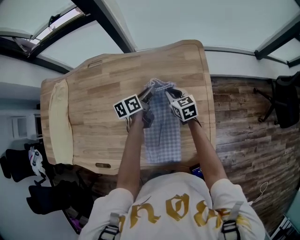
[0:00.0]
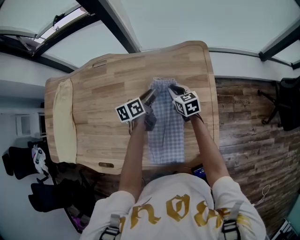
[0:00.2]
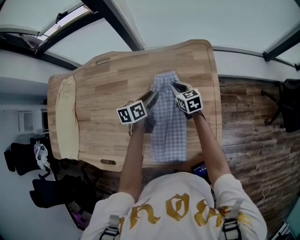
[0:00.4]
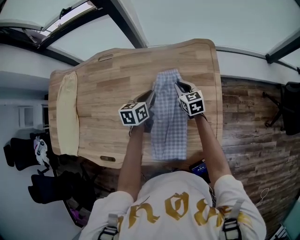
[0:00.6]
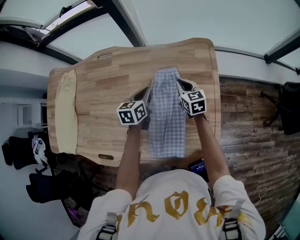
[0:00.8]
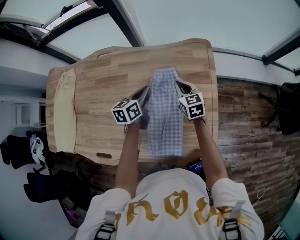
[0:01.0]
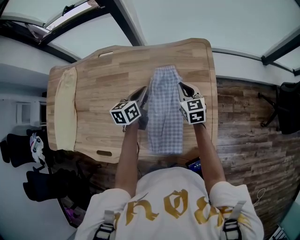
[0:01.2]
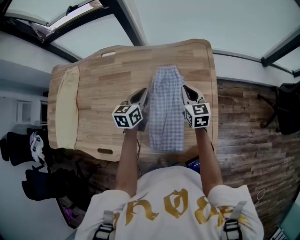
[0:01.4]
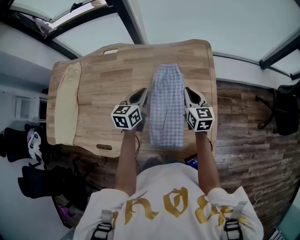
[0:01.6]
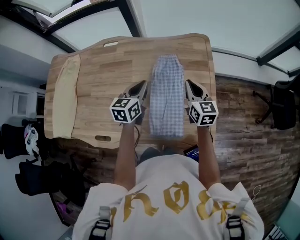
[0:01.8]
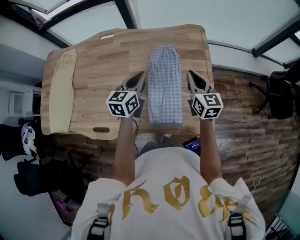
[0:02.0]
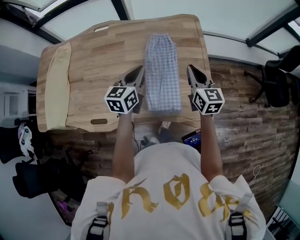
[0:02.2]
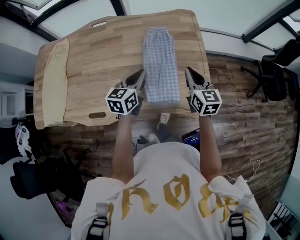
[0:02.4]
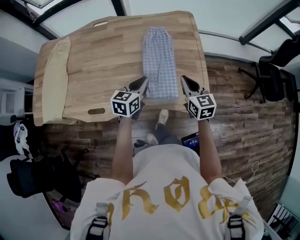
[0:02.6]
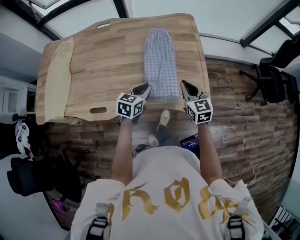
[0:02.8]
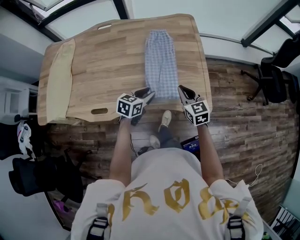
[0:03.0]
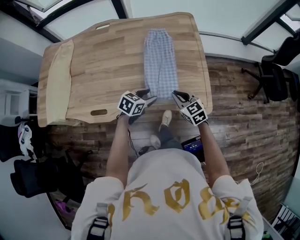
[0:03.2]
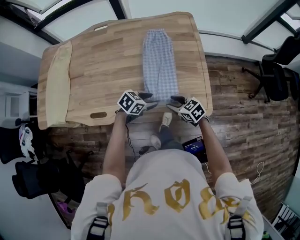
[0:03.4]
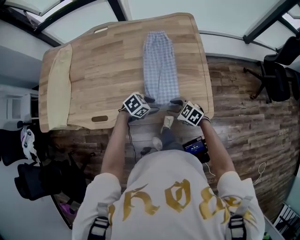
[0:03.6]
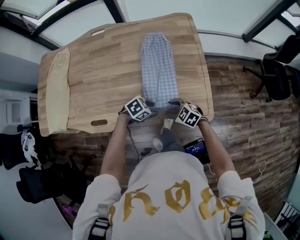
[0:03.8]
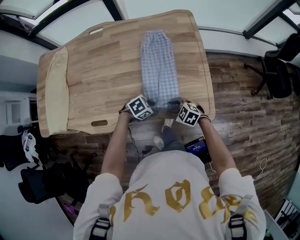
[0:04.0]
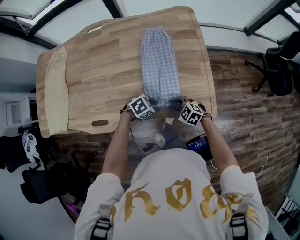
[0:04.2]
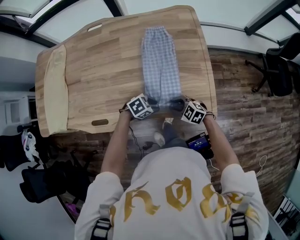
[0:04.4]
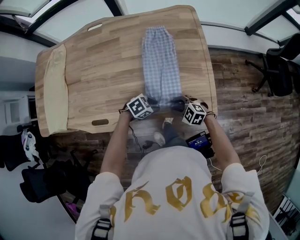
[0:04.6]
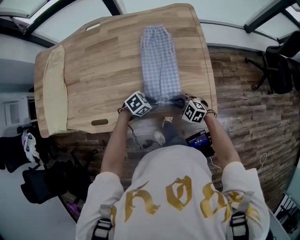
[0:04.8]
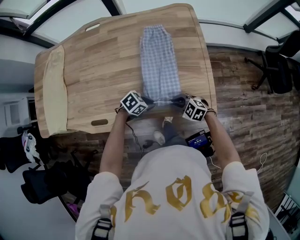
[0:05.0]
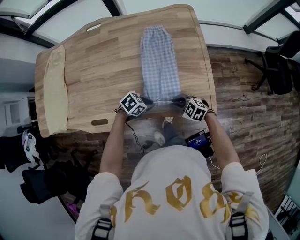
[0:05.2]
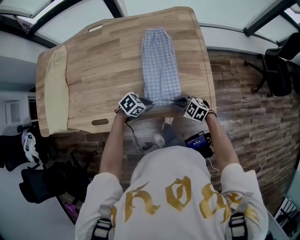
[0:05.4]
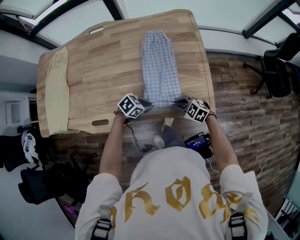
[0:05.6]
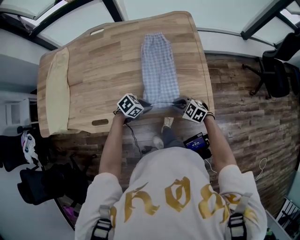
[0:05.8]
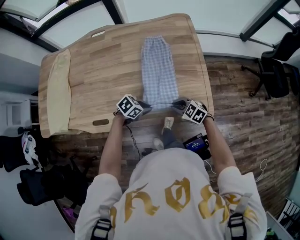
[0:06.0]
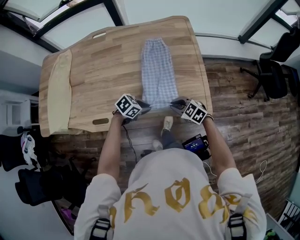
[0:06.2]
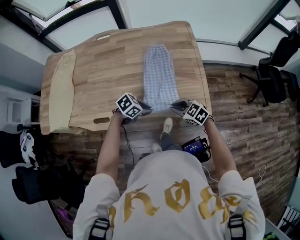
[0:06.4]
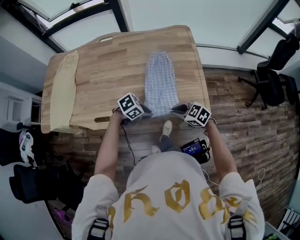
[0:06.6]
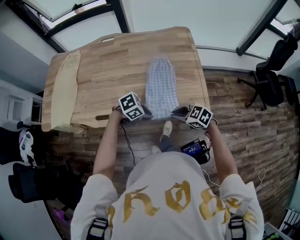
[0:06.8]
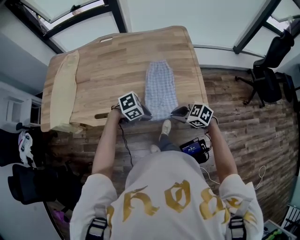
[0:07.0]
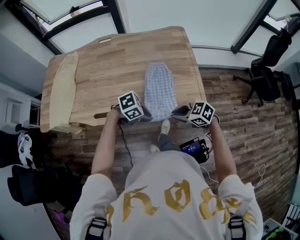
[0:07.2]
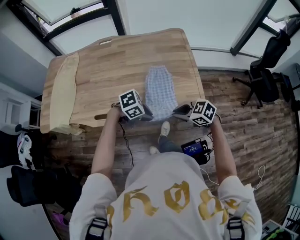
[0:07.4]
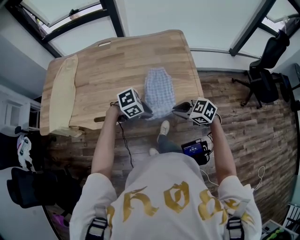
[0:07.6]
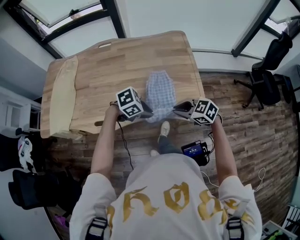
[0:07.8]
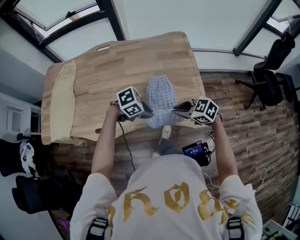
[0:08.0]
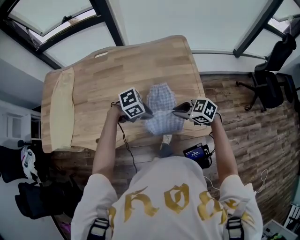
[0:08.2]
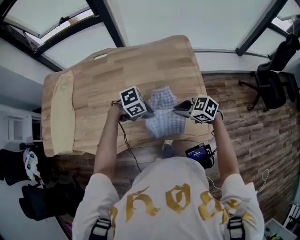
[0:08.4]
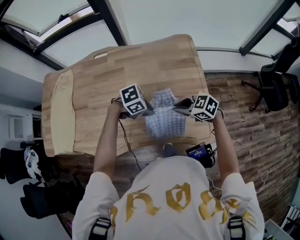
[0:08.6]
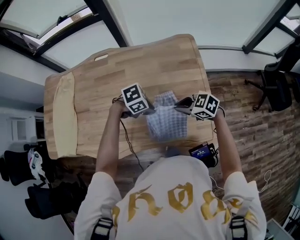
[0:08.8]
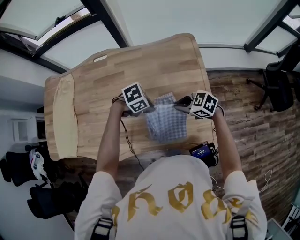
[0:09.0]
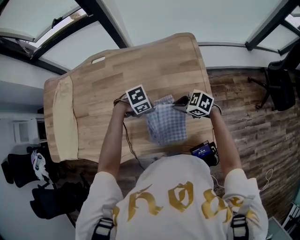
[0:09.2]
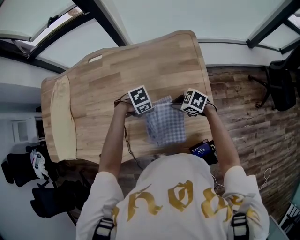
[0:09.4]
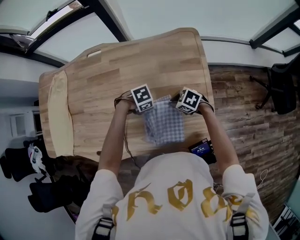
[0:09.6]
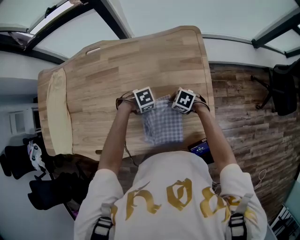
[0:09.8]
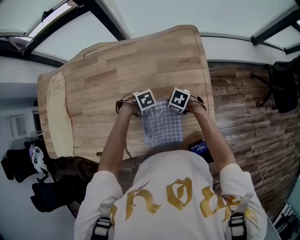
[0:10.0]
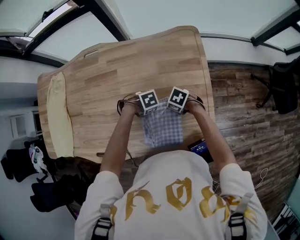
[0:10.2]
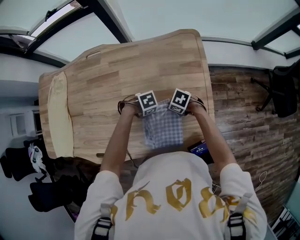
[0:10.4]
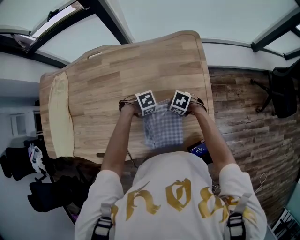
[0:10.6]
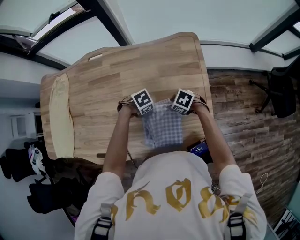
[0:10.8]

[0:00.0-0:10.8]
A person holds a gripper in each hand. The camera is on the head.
0:00.0 to 0:01.6: The left gripper travels backward, upward and to the left by roughly 15 cm, and swivels about 30 degrees. Meanwhile the right gripper heads upward and backward, covering some 15 cm.
0:01.6 to 0:03.0: Both grippers move backward, roughly 25 cm. The left gripper swivels approximately 30 degrees.
0:03.0 to 0:04.6: The grippers both shift downward by roughly 15 cm. The right gripper changes its angle by approximately 50 degrees, and opens its fingers, while the left gripper turns by about 50 degrees.
0:04.6 to 0:06.2: Both grippers move upward, roughly 5 cm. The right gripper closes up.
0:06.2 to 0:07.8: Both grippers travel together upward, roughly 15 cm. The left gripper changes its angle by approximately 20 degrees.
0:07.8 to 0:09.2: The left gripper shifts by approximately 30 cm; the right gripper shifts by roughly 25 cm.
0:09.2 to 0:10.8: The two grippers go some 10 cm downward. The right gripper swivels approximately 20 degrees, and opens up.

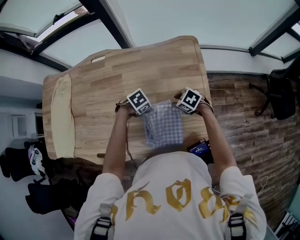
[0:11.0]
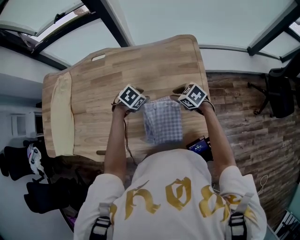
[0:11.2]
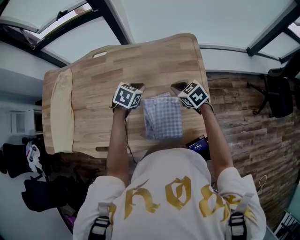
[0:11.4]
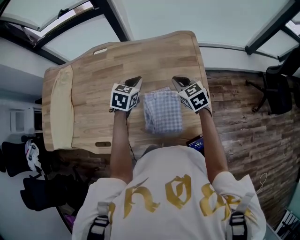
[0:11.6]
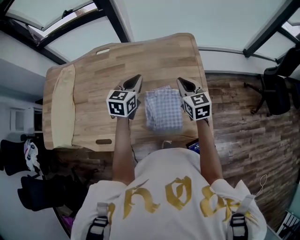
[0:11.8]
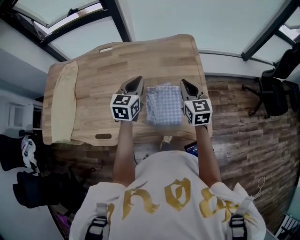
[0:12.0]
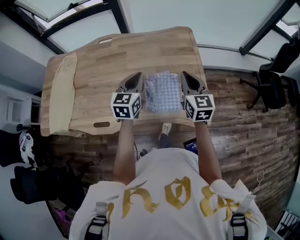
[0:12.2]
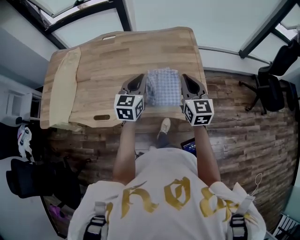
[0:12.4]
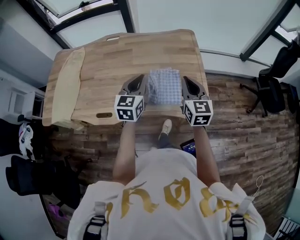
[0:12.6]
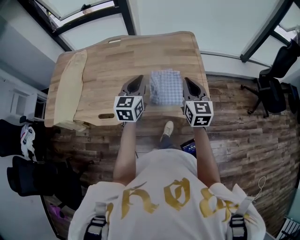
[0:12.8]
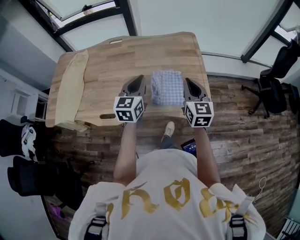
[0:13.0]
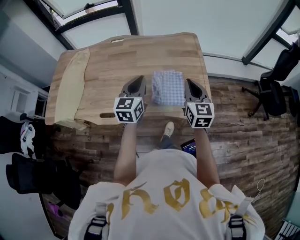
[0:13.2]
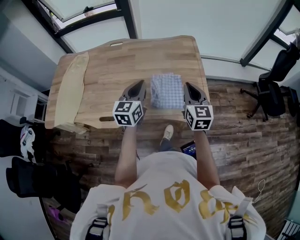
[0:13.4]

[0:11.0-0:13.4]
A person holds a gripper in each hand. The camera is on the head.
0:11.0 to 0:12.2: The two grippers go some 25 cm upward. The left gripper tips its fingers upward by about 50 degrees, and closes. Meanwhile the right gripper angles its fingers upward, by roughly 50 degrees, and closes its fingers.
0:12.2 to 0:13.4: Both grippers travel together backward, some 10 cm.

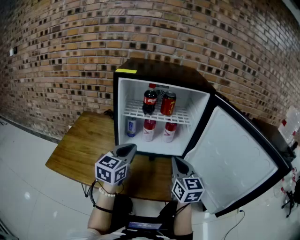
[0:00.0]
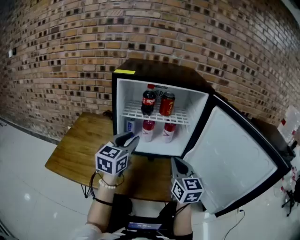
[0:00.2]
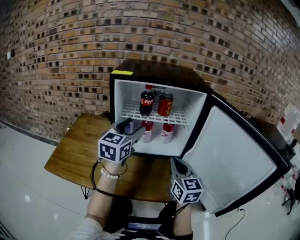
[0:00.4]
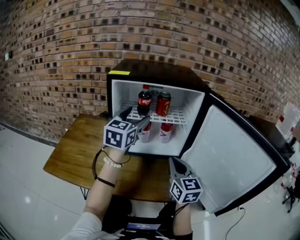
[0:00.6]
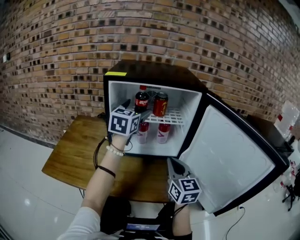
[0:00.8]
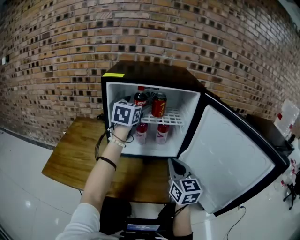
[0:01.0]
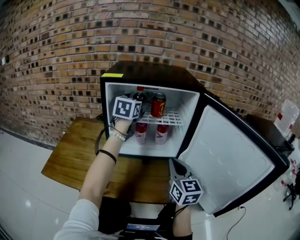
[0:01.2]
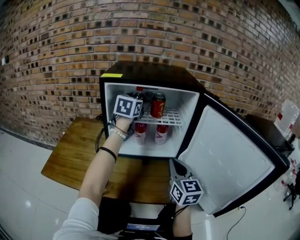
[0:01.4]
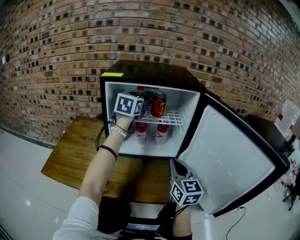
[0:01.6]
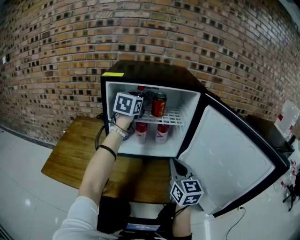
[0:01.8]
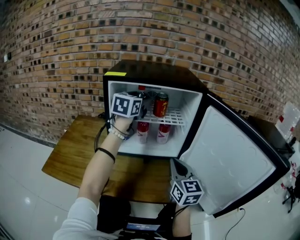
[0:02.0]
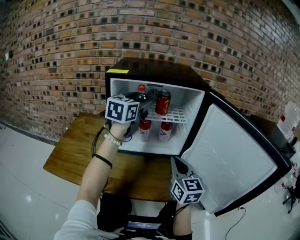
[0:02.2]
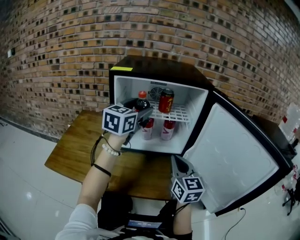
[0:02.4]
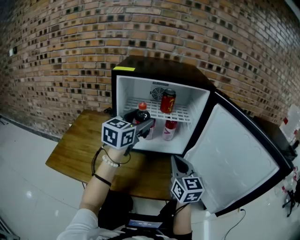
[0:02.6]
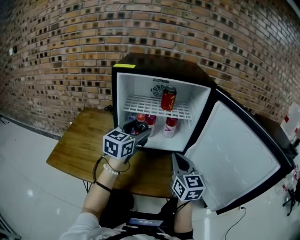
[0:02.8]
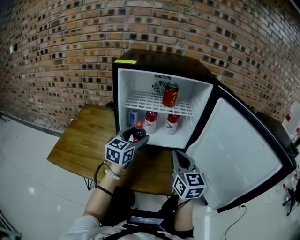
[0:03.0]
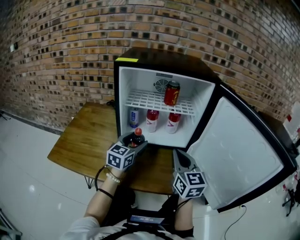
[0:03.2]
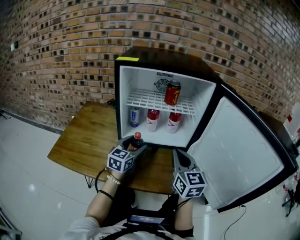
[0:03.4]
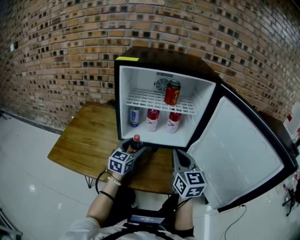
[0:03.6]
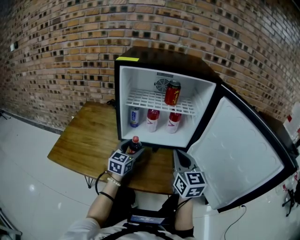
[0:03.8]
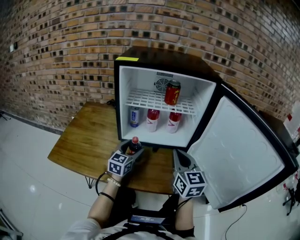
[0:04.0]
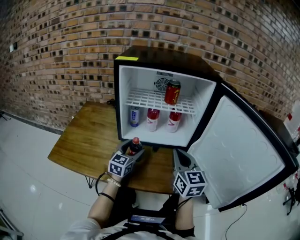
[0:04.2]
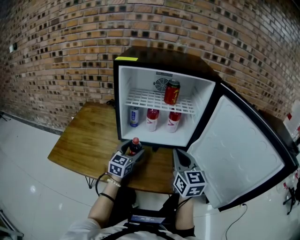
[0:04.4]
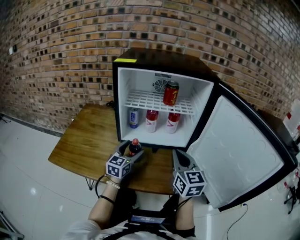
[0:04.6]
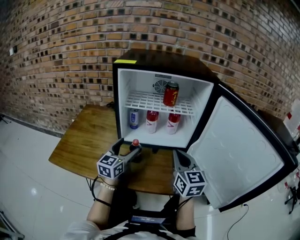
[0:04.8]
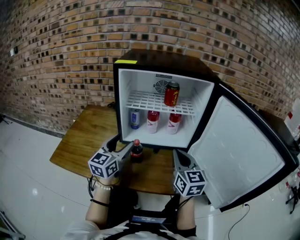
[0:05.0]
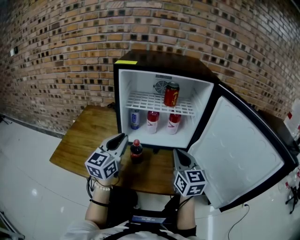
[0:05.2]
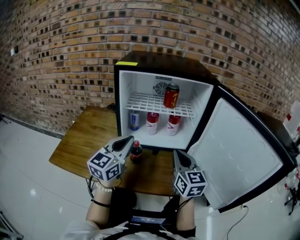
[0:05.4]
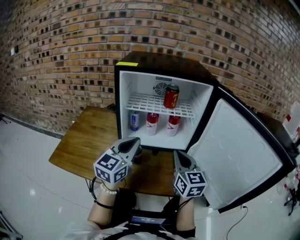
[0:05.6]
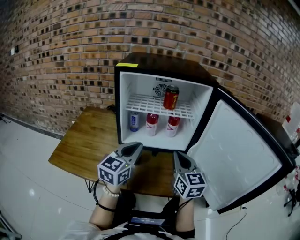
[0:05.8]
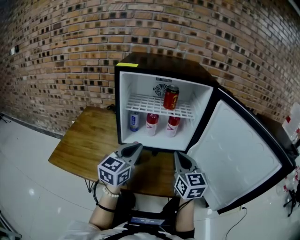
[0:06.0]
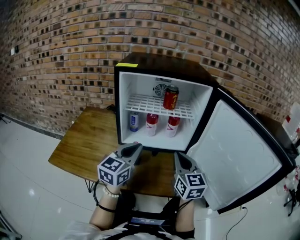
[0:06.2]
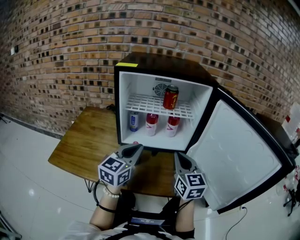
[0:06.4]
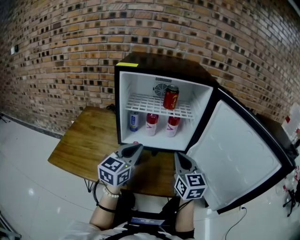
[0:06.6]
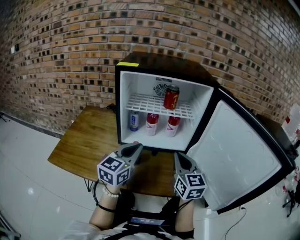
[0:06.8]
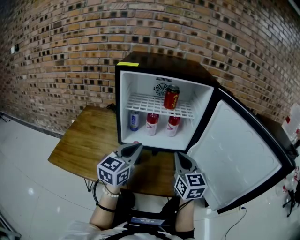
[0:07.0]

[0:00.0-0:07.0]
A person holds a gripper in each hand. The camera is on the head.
0:00.0 to 0:01.4: The left gripper heads forward and upward, covering some 25 cm, and opens up.
0:01.4 to 0:02.8: The left gripper heads backward and downward, covering some 20 cm.
0:02.8 to 0:04.2: The left gripper goes roughly 20 cm downward.
0:04.2 to 0:05.6: The left gripper moves upward and backward, roughly 20 cm, and closes.
0:05.6 to 0:07.0: There are only small adjustments of the grippers.

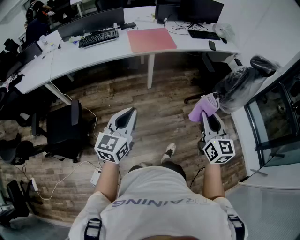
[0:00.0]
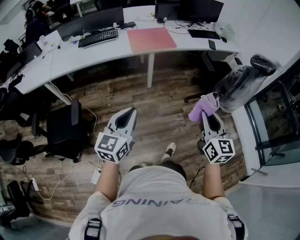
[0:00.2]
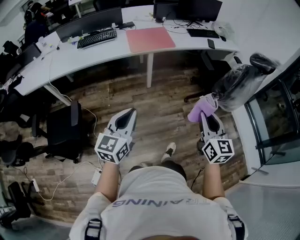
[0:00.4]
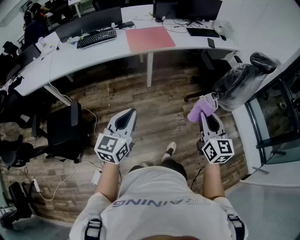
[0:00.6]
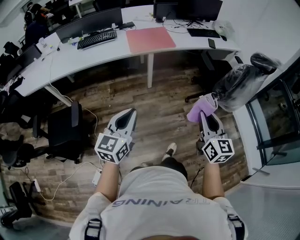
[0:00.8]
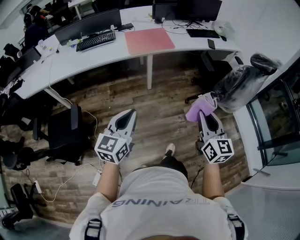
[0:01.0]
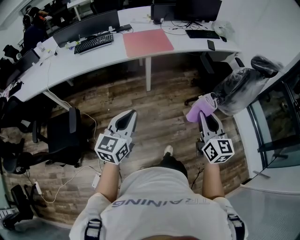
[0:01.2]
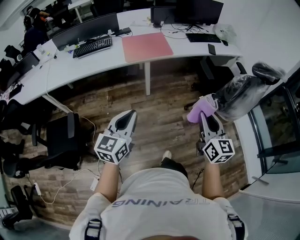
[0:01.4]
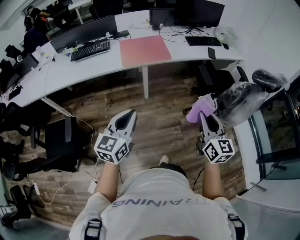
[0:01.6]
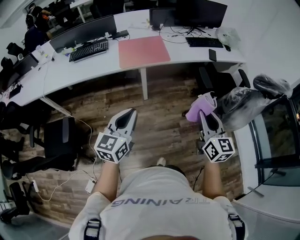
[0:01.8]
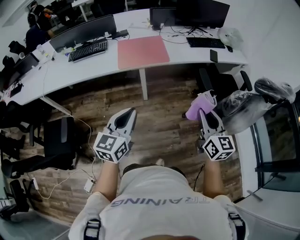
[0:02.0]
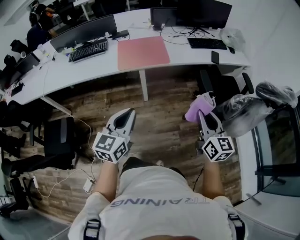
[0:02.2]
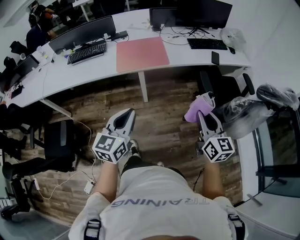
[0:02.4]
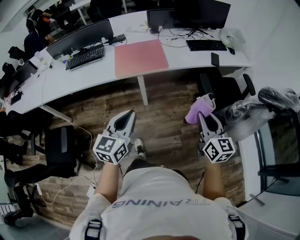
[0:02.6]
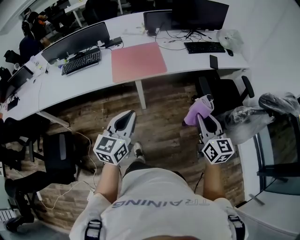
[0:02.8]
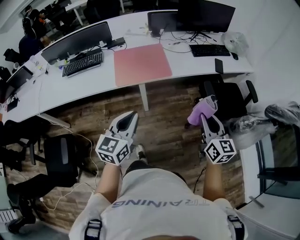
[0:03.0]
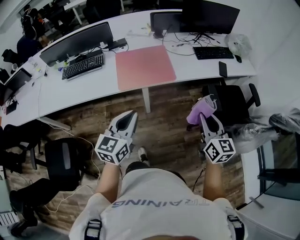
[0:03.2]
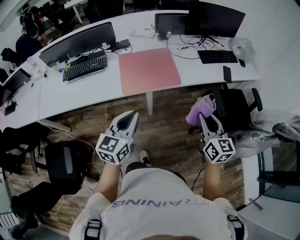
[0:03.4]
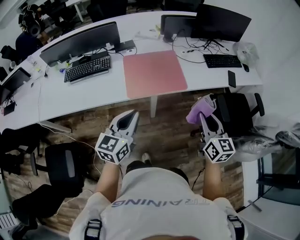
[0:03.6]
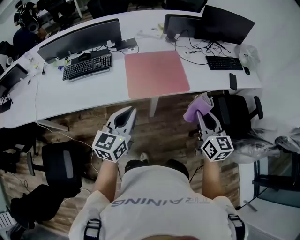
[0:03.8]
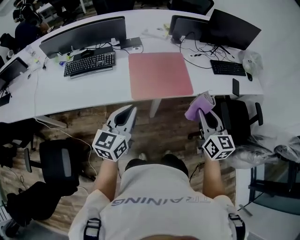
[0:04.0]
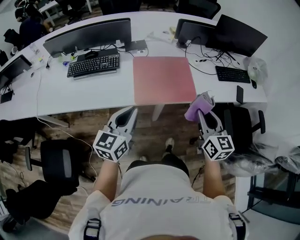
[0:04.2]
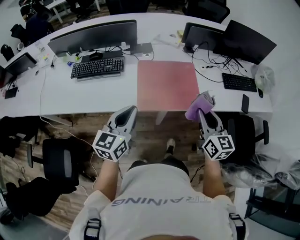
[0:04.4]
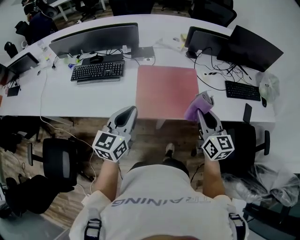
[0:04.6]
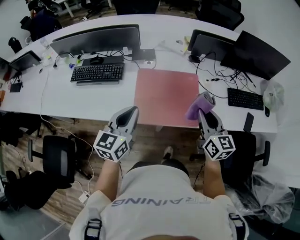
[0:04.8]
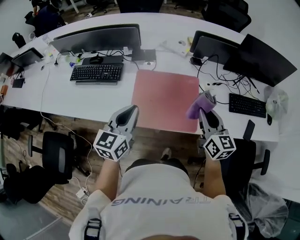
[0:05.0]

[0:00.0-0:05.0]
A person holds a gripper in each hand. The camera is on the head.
0:00.0 to 0:01.6: Both grippers move forward and to the right, about 20 cm.
0:01.6 to 0:03.4: Both grippers move forward, approximately 30 cm.
0:03.4 to 0:05.0: The two grippers go about 35 cm forward.
